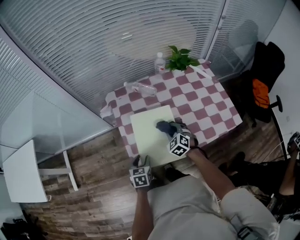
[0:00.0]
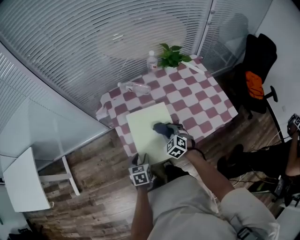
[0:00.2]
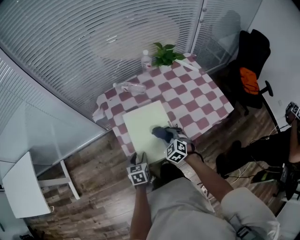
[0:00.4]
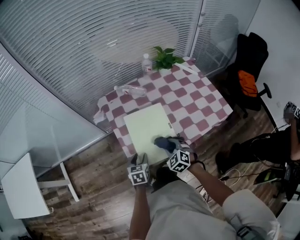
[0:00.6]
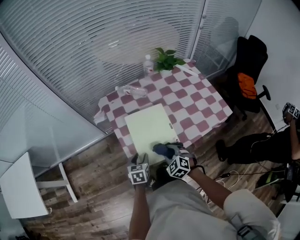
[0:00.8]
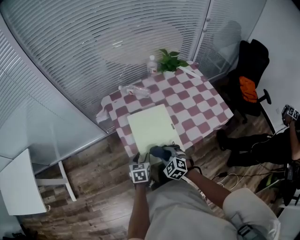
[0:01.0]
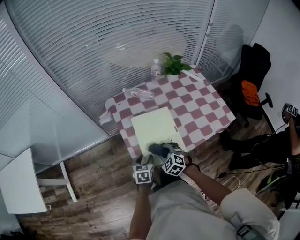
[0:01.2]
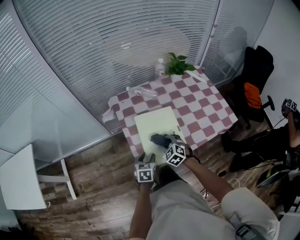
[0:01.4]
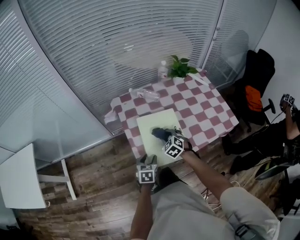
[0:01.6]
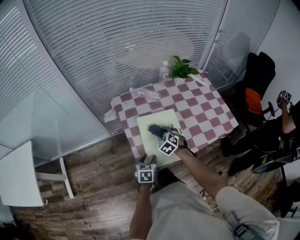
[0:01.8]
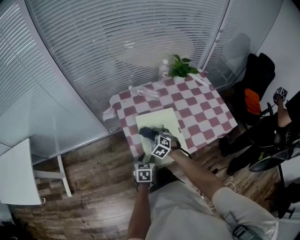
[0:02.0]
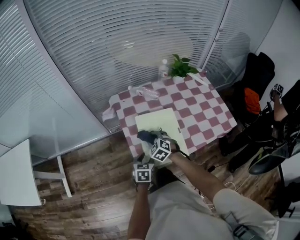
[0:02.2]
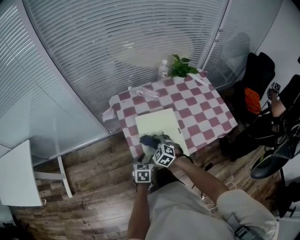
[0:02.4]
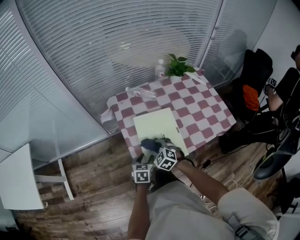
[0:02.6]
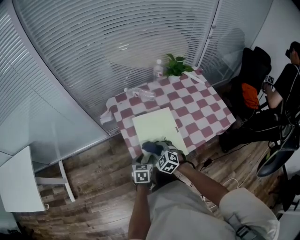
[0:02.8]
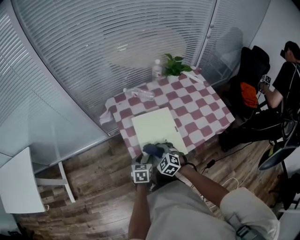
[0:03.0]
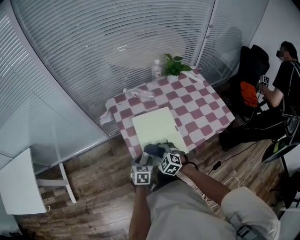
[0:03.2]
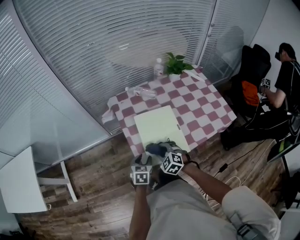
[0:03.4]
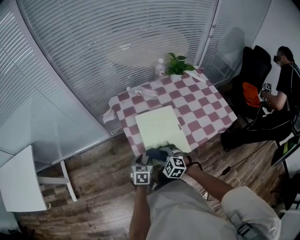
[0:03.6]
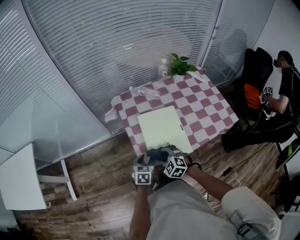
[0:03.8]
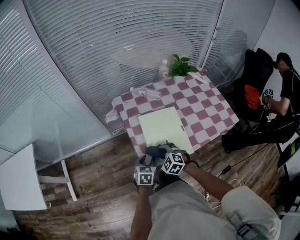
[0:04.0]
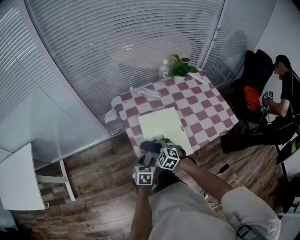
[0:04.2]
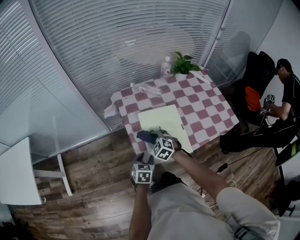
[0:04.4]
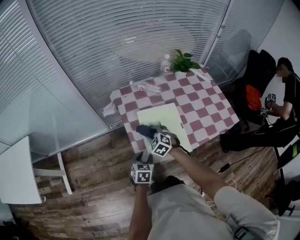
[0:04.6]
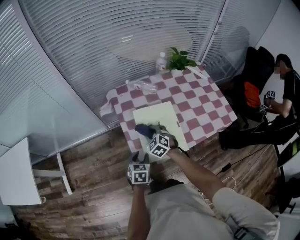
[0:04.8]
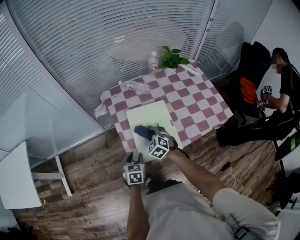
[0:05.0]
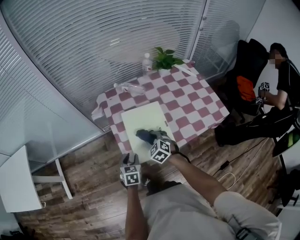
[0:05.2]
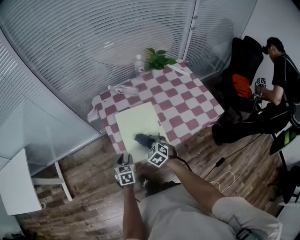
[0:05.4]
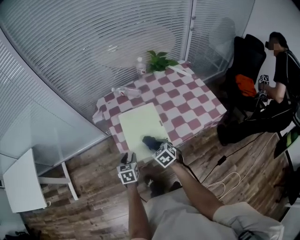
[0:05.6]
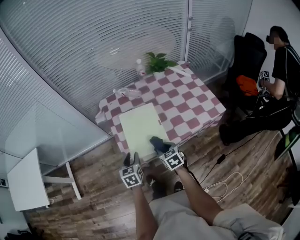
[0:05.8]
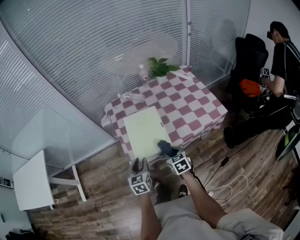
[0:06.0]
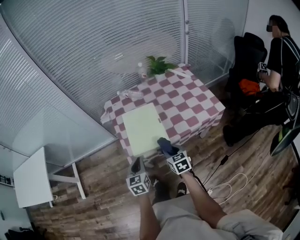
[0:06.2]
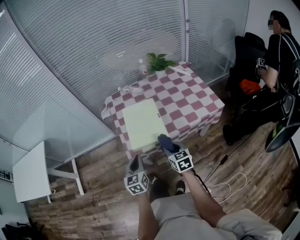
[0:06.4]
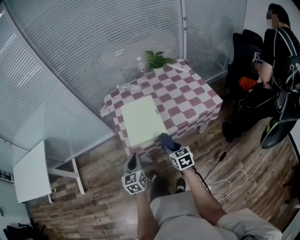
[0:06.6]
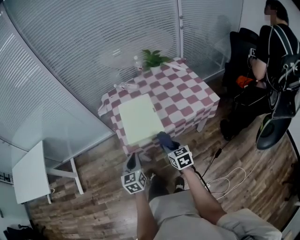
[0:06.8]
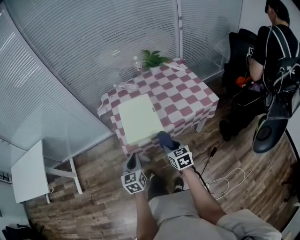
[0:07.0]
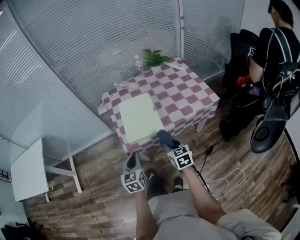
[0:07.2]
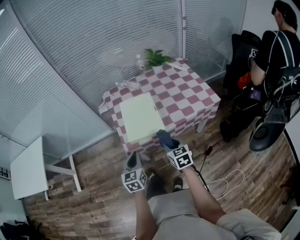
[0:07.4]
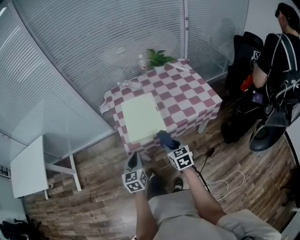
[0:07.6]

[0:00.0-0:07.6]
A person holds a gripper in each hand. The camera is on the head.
0:00.0 to 0:01.6: The right gripper moves to the left, approximately 5 cm, and goes backward and returns, some 15 cm each way.
0:01.6 to 0:03.0: The right gripper goes about 10 cm backward.
0:03.0 to 0:04.6: The right gripper shifts about 10 cm forward.
0:04.6 to 0:06.0: The right gripper is displaced backward and to the right by approximately 25 cm, and rotates around the line of its fingers by approximately 40 degrees, clockwise from behind. Meanwhile the left gripper moves upward, backward and to the right, roughly 15 cm, and turns by some 20 degrees.
0:06.0 to 0:07.6: The grippers both shift backward by about 10 cm. The left gripper closes its fingers.

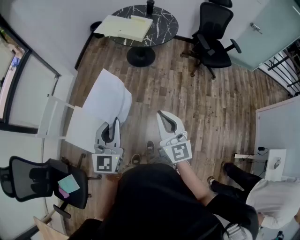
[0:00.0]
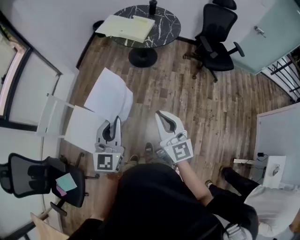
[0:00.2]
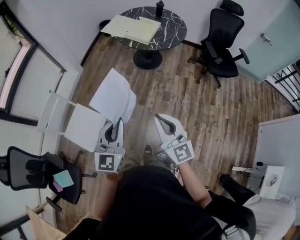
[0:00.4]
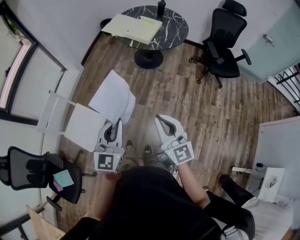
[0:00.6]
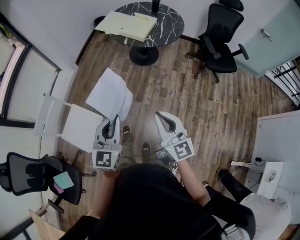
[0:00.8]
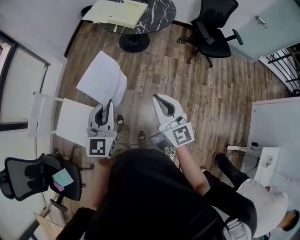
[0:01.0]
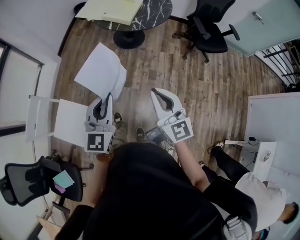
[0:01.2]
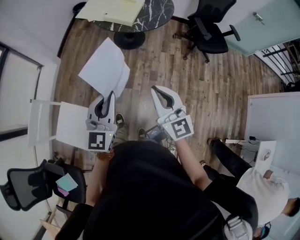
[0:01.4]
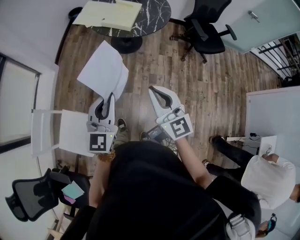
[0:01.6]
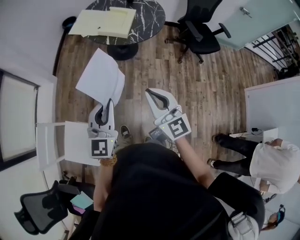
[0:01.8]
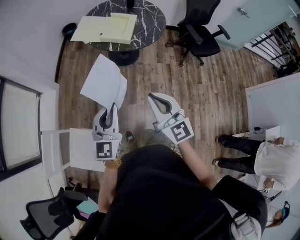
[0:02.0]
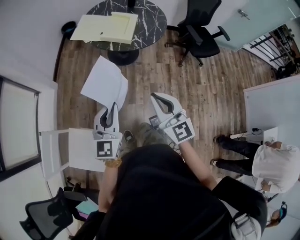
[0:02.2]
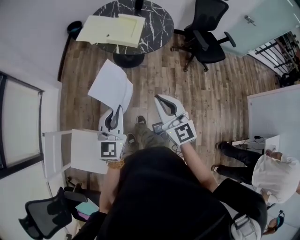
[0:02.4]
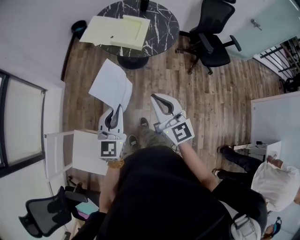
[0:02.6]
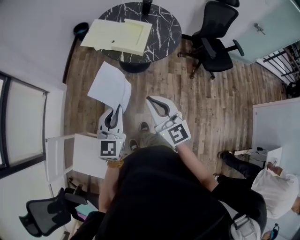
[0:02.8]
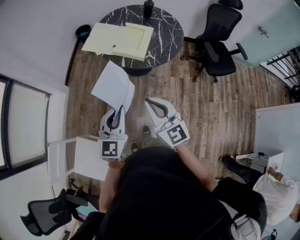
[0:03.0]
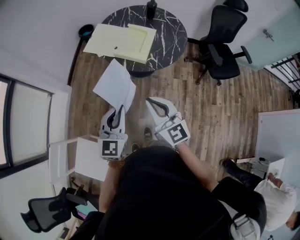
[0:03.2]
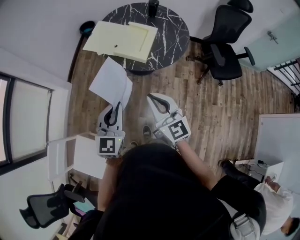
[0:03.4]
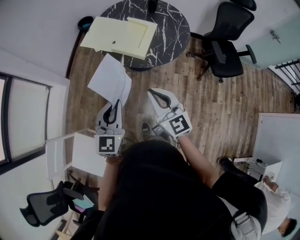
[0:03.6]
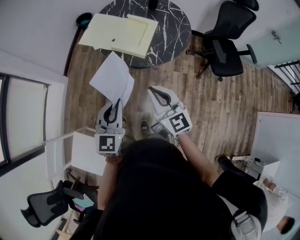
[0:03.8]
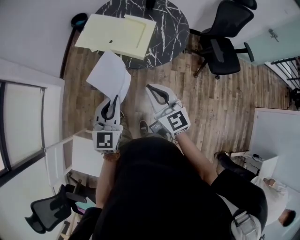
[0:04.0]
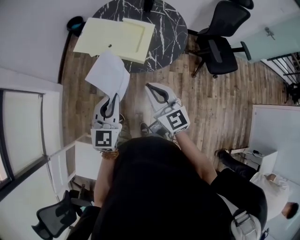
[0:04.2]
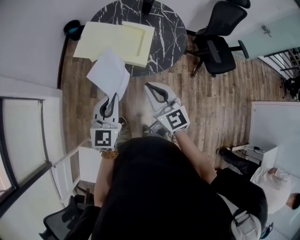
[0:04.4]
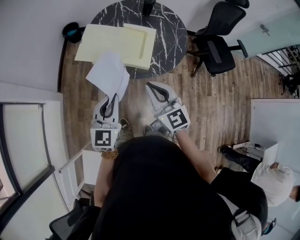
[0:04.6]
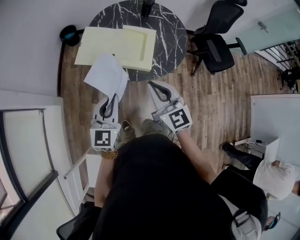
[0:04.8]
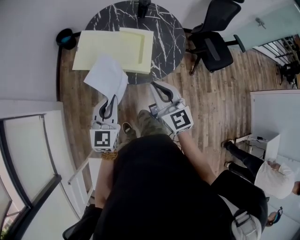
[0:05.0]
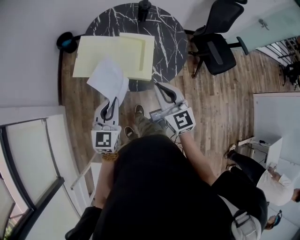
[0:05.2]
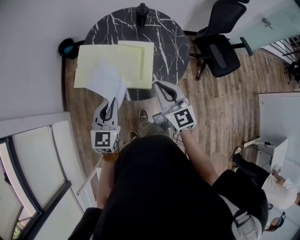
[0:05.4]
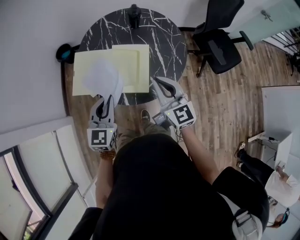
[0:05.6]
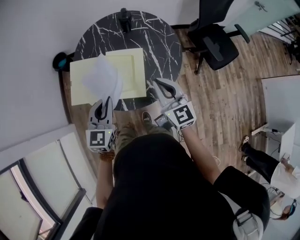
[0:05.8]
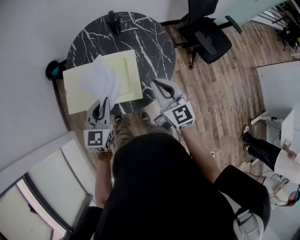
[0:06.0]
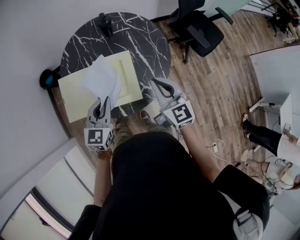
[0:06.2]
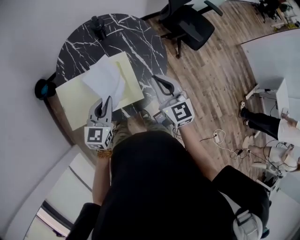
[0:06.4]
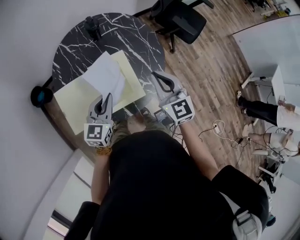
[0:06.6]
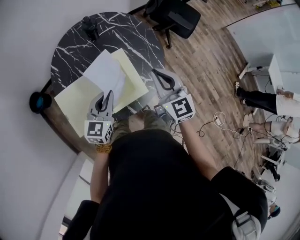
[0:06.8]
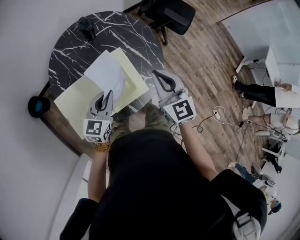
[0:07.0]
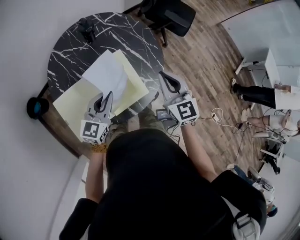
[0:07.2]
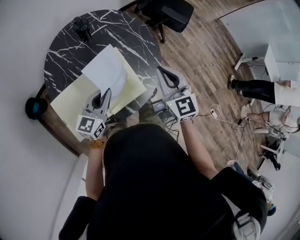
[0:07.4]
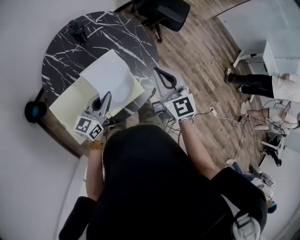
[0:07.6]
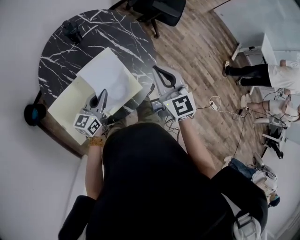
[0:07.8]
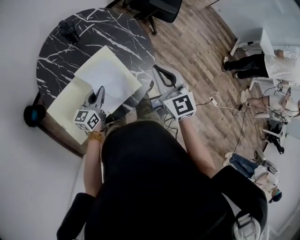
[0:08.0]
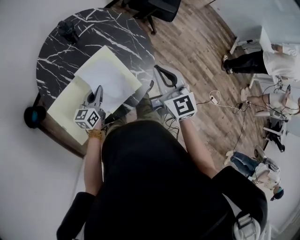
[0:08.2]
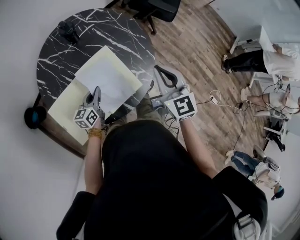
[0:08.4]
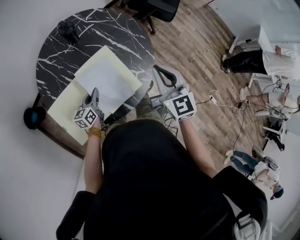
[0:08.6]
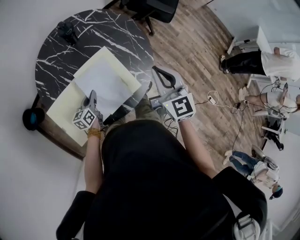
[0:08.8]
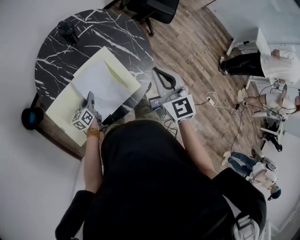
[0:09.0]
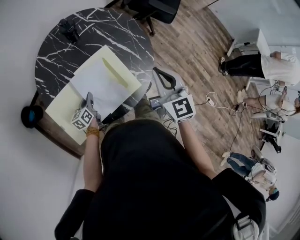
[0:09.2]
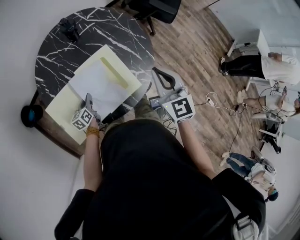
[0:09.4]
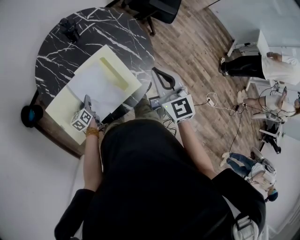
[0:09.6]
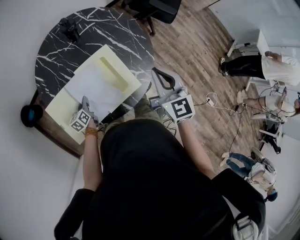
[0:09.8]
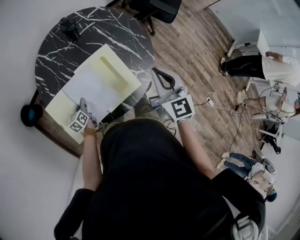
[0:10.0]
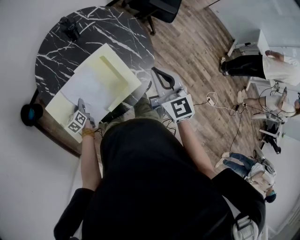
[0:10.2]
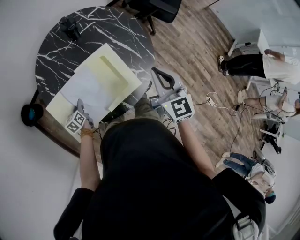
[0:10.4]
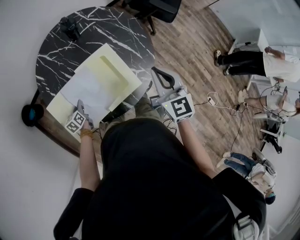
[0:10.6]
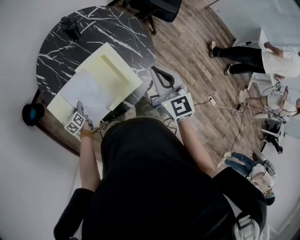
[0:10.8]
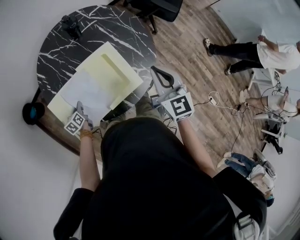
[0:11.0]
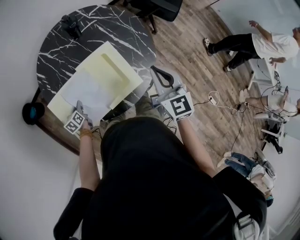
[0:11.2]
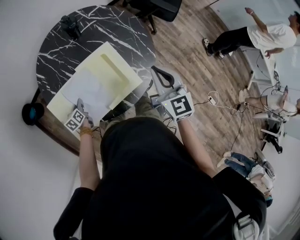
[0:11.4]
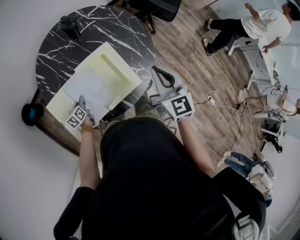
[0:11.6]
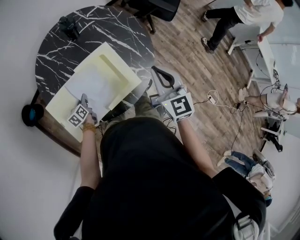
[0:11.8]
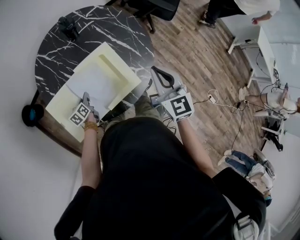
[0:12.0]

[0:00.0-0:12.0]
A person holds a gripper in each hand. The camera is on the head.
0:00.0 to 0:01.6: Both grippers move forward, some 20 cm.
0:01.6 to 0:03.0: Both grippers travel together forward, roughly 20 cm.
0:03.0 to 0:04.4: The two grippers go roughly 20 cm forward.
0:04.4 to 0:06.0: The right gripper shifts about 30 cm forward and to the right, and rotates roughly 20 degrees. The left gripper goes approximately 30 cm forward, and changes its angle by approximately 20 degrees.
0:06.0 to 0:07.6: The right gripper turns by about 30 degrees; the left gripper ends up roughly 15 cm from where it was, and changes its angle by some 50 degrees.
0:07.6 to 0:09.0: The left gripper moves downward and to the left, approximately 20 cm, and rotates roughly 30 degrees.
0:09.0 to 0:10.4: The left gripper moves to the left and downward, approximately 10 cm.
0:10.4 to 0:12.0: The left gripper is displaced to the right by some 5 cm.

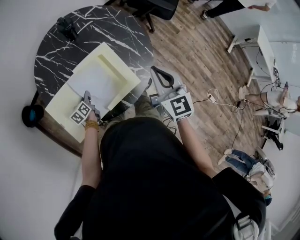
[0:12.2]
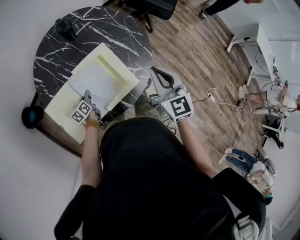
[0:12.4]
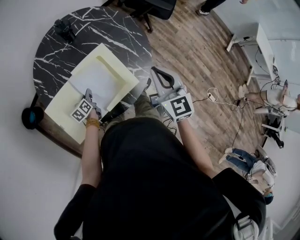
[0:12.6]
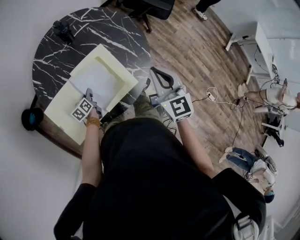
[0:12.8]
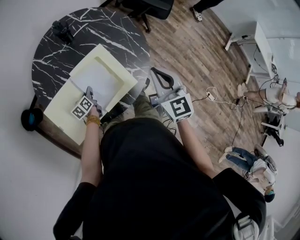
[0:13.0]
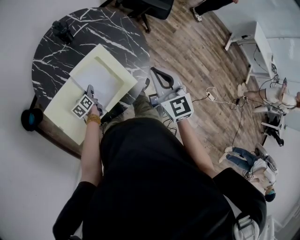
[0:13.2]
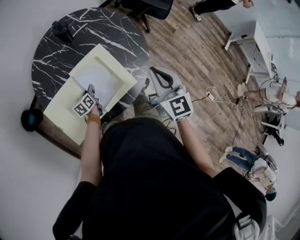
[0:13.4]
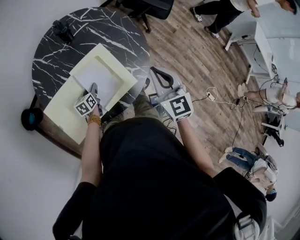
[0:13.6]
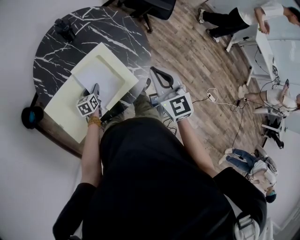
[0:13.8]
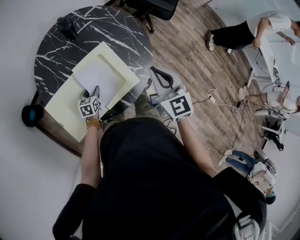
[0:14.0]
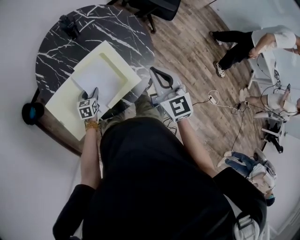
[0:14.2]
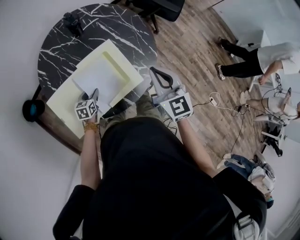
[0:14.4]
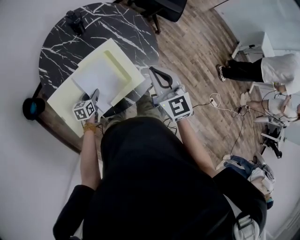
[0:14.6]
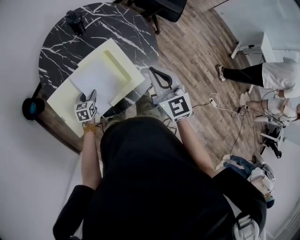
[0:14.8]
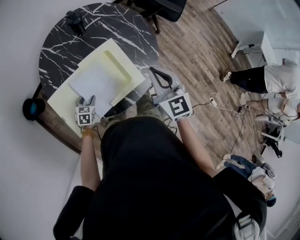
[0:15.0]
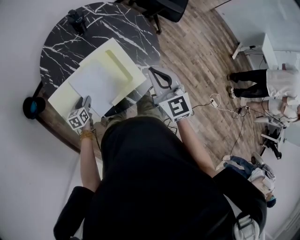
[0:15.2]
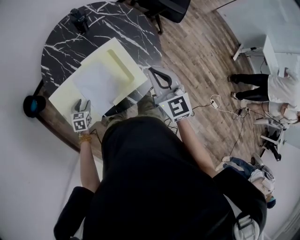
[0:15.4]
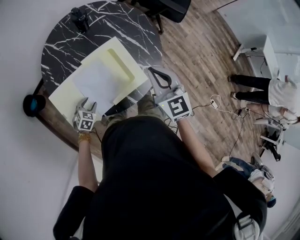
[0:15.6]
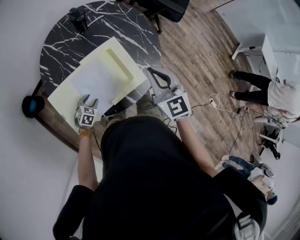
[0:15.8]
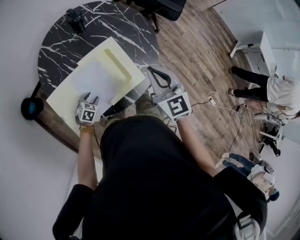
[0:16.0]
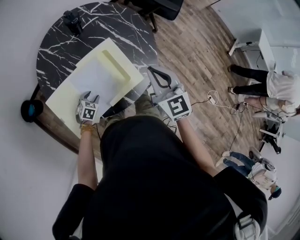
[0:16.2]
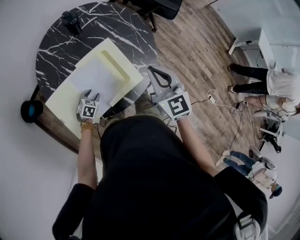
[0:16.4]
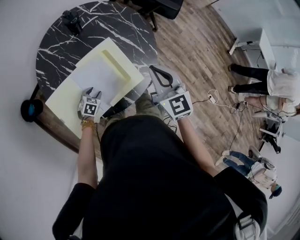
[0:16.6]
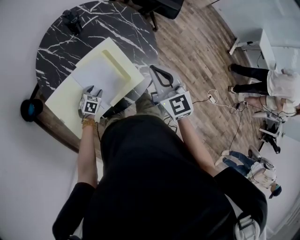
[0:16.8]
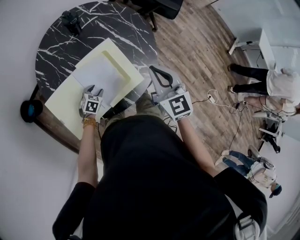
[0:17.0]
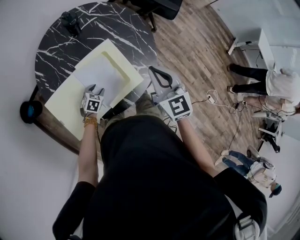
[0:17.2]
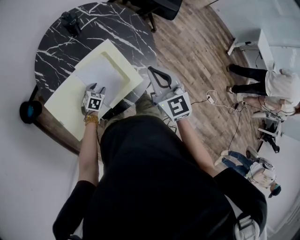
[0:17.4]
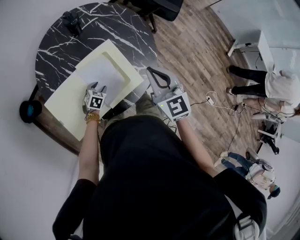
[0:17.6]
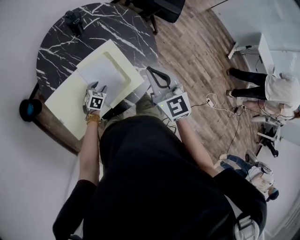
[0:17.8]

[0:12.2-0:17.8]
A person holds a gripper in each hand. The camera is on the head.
0:12.2 to 0:13.6: The left gripper goes about 5 cm to the right, and opens.
0:13.6 to 0:15.0: The left gripper heads backward and to the left, covering some 10 cm, and rotates roughly 30 degrees.
0:15.0 to 0:16.4: The left gripper ends up approximately 5 cm from where it was.
0:16.4 to 0:17.8: The left gripper travels forward by about 5 cm.
